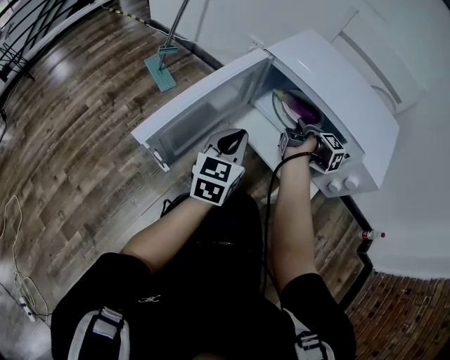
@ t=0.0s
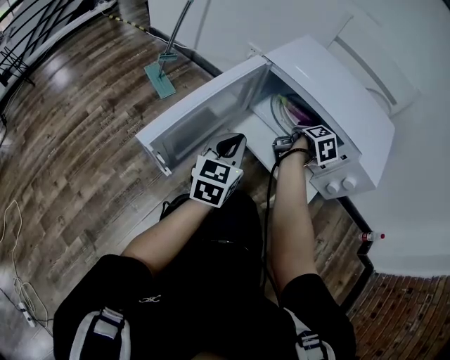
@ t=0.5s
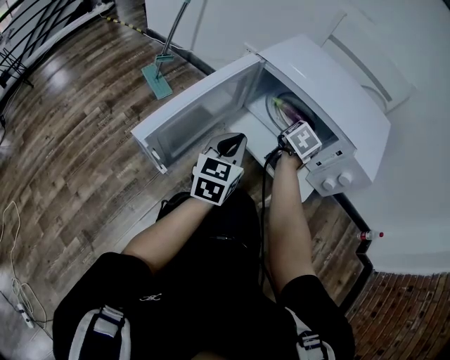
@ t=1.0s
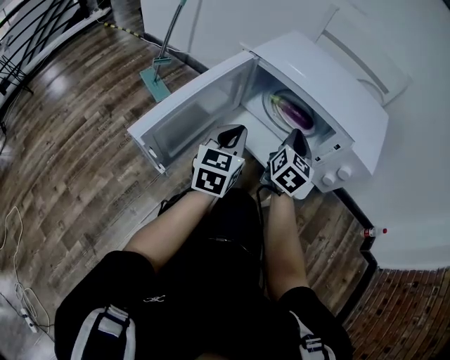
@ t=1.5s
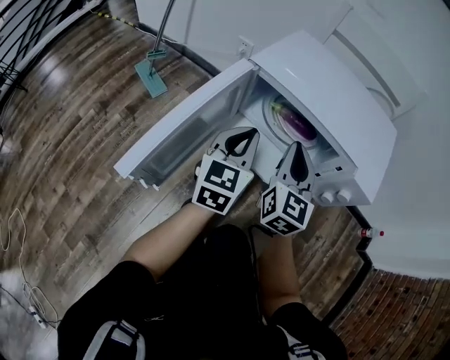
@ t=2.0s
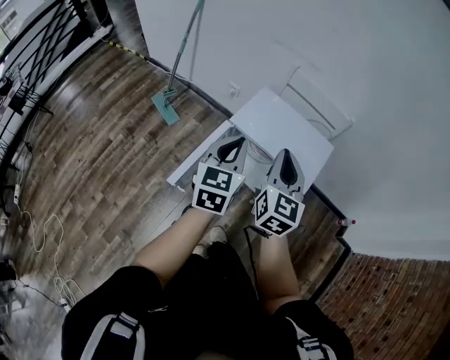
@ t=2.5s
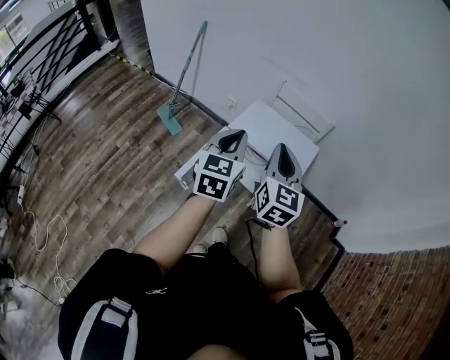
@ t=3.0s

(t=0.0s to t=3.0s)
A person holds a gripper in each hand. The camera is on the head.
t=1.5s - t=3.0s: The left gripper moves upward, some 50 cm.

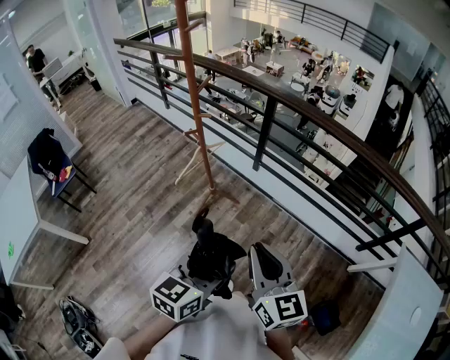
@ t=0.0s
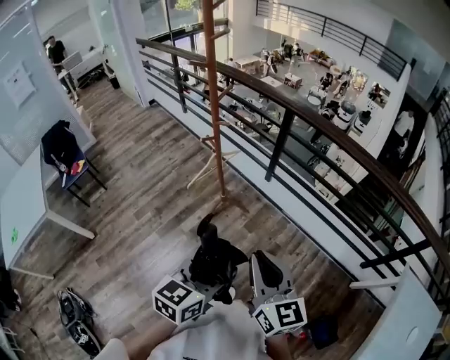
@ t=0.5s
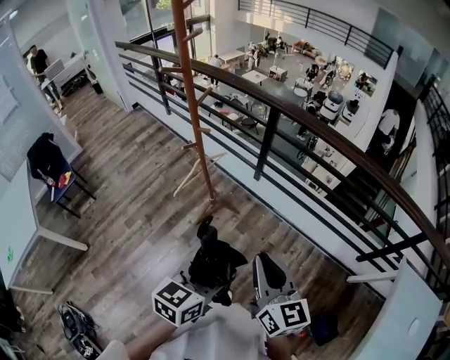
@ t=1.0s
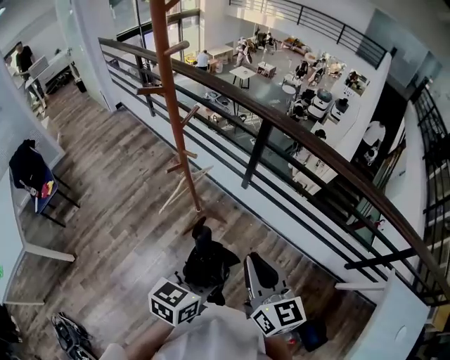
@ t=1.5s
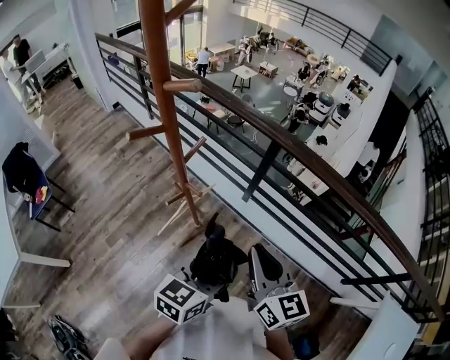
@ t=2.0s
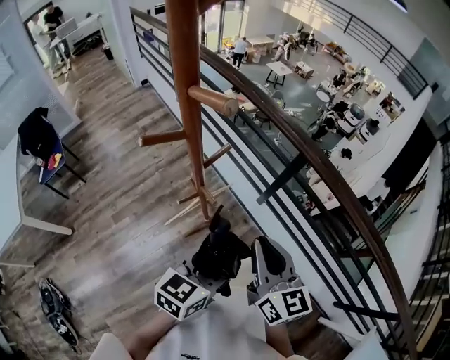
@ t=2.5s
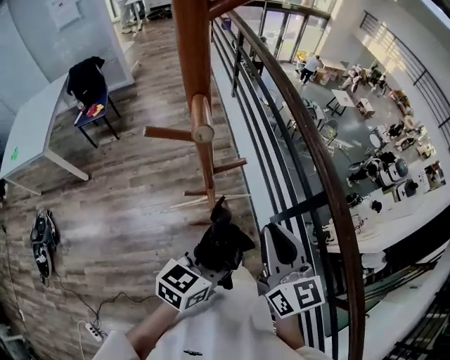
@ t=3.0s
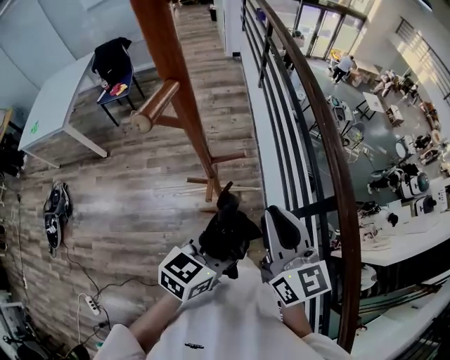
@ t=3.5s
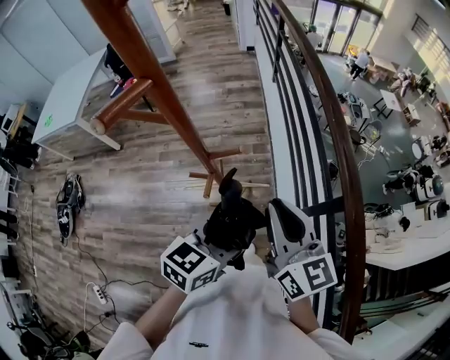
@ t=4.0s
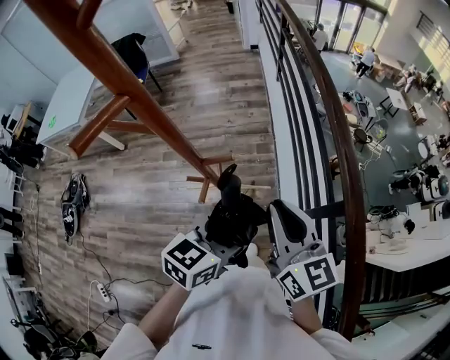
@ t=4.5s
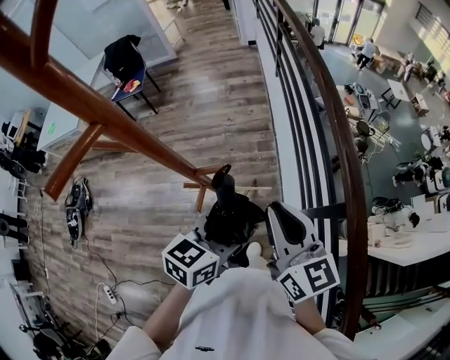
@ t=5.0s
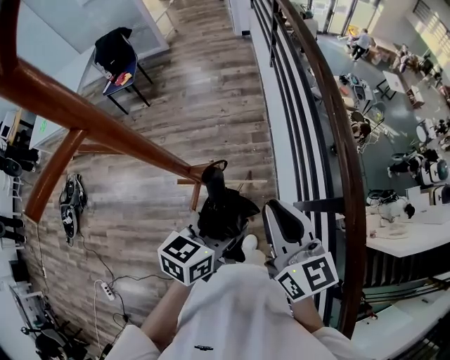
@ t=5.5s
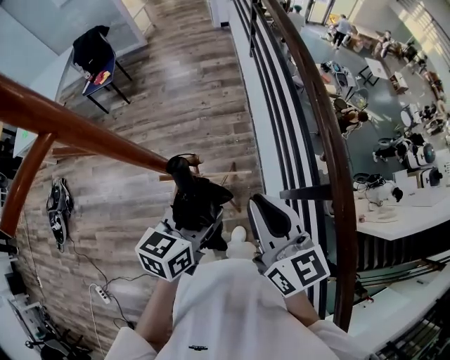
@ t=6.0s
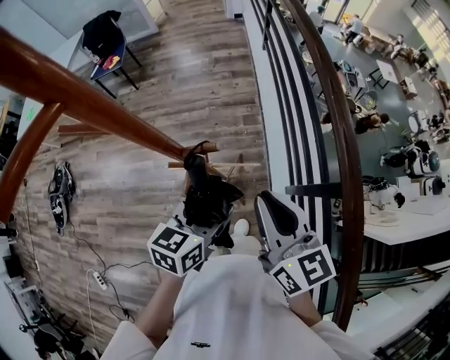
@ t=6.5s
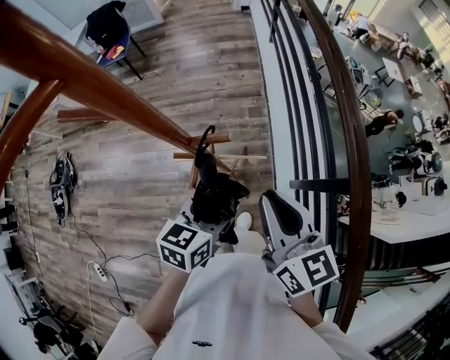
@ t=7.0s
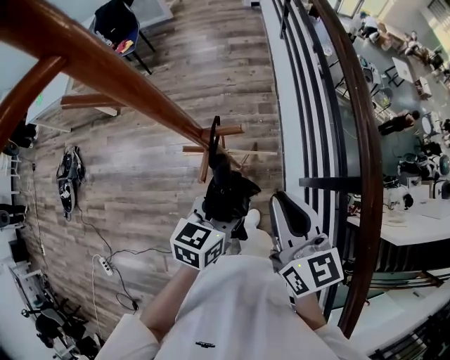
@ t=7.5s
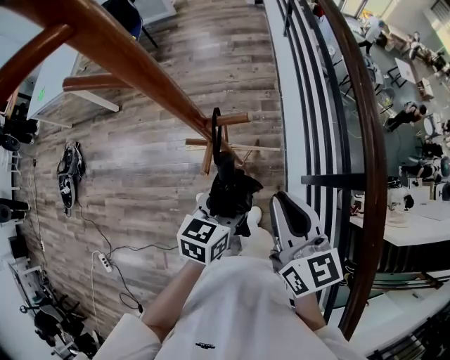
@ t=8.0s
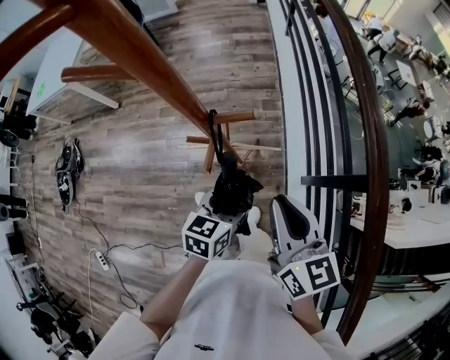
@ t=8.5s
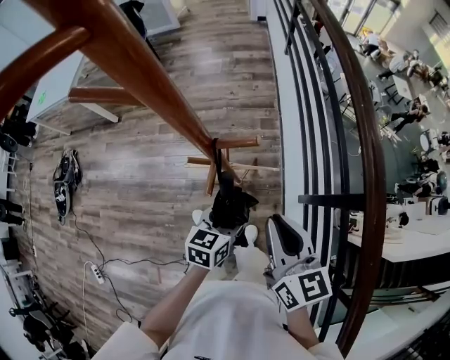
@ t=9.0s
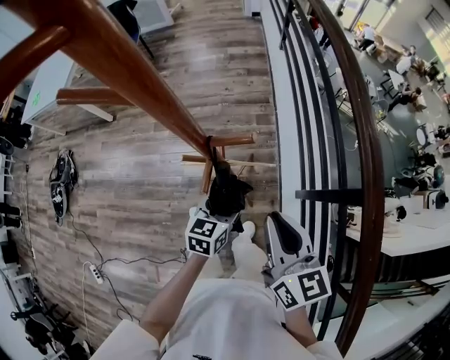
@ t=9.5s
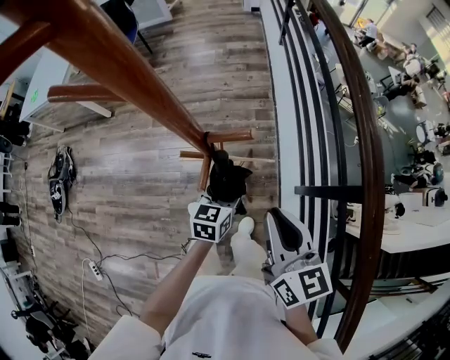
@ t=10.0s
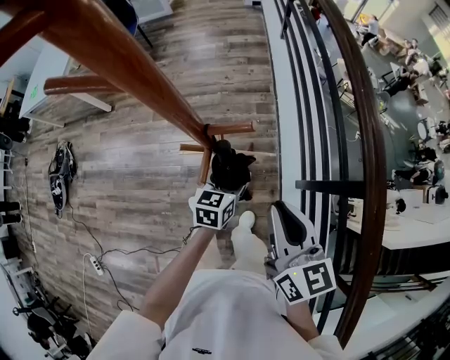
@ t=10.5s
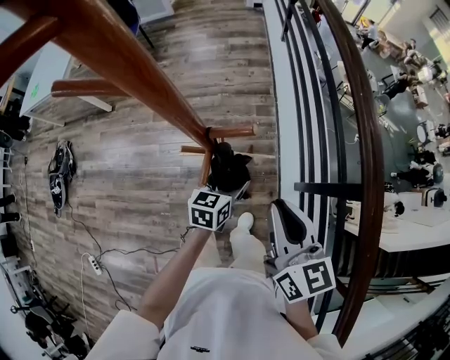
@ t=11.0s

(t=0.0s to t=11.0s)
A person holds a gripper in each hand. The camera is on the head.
t=0.0s - t=2.0s: Both grippers travel together forward, roughly 35 cm.
t=2.0s - t=3.5s: The right gripper changes place by some 25 cm, and changes its angle by approximately 50 degrees; the left gripper shifts by about 20 cm, and changes its angle by about 40 degrees.
t=3.5s - t=5.5s: Both grippers move forward, about 10 cm.
t=5.5s - t=7.5s: The two grippers go approximately 5 cm downward.
t=7.5s - t=9.0s: The right gripper shifts by some 5 cm. Meanwhile the left gripper shifts some 10 cm downward.
t=9.0s - t=11.0s: The left gripper travels forward by about 5 cm.

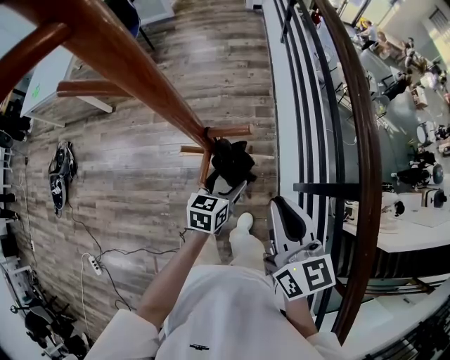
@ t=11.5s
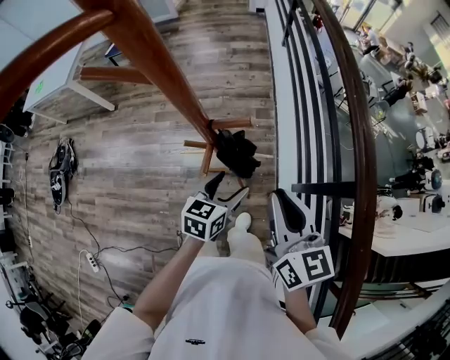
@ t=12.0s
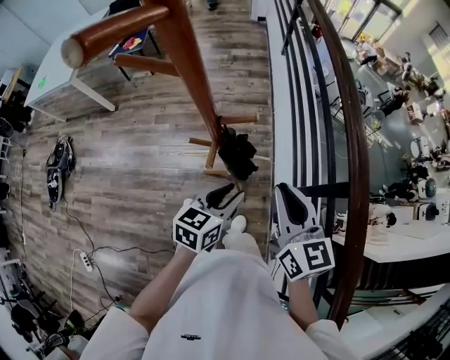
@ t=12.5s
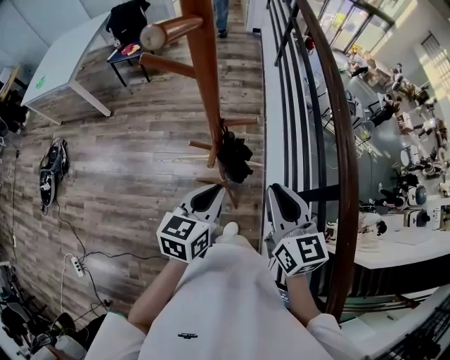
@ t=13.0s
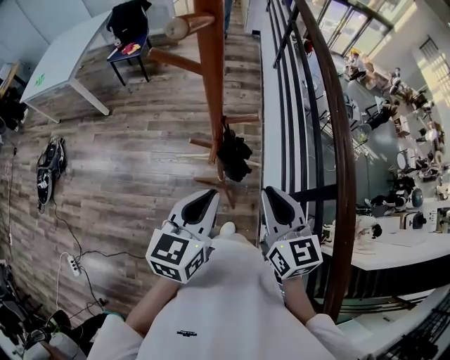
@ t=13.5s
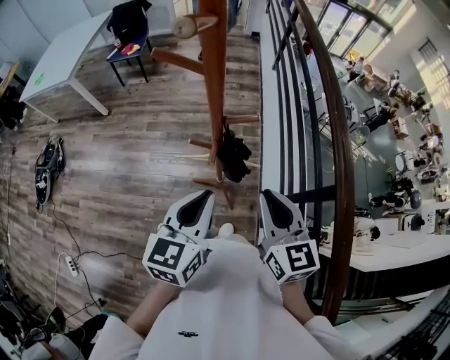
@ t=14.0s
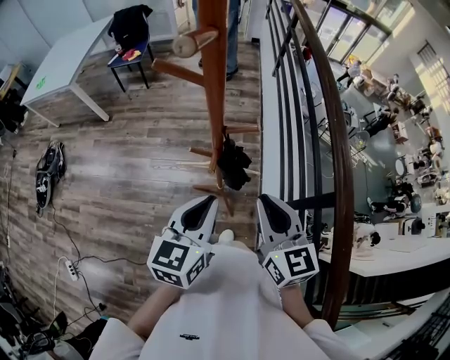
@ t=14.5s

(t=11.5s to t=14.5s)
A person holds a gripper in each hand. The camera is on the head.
t=11.5s - t=13.0s: The left gripper travels upward and backward by some 20 cm, and closes.
t=13.0s - t=14.5s: The left gripper travels upward by some 5 cm.

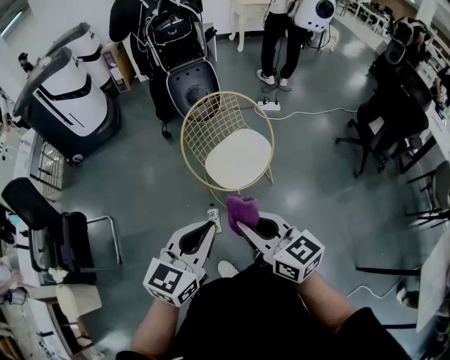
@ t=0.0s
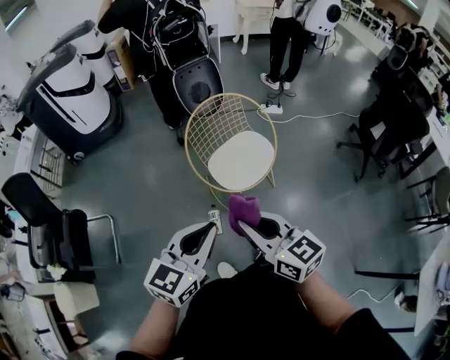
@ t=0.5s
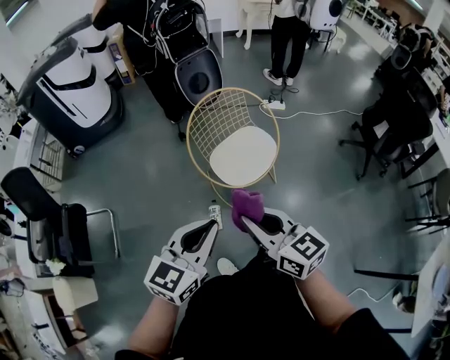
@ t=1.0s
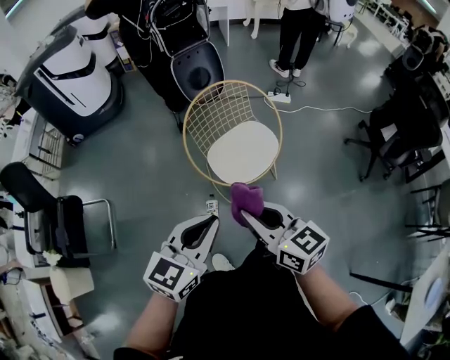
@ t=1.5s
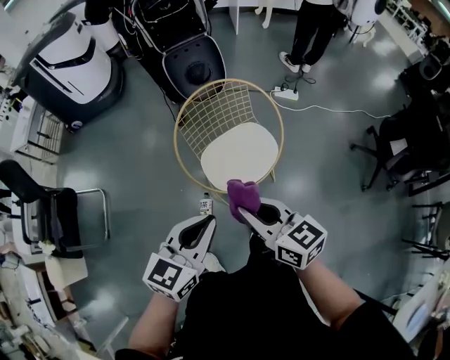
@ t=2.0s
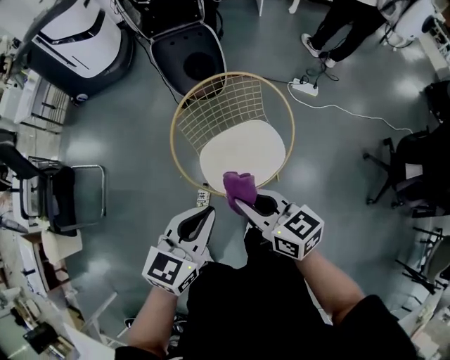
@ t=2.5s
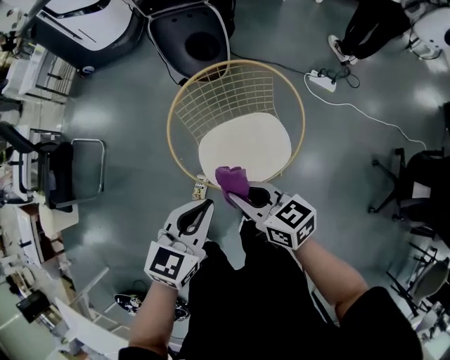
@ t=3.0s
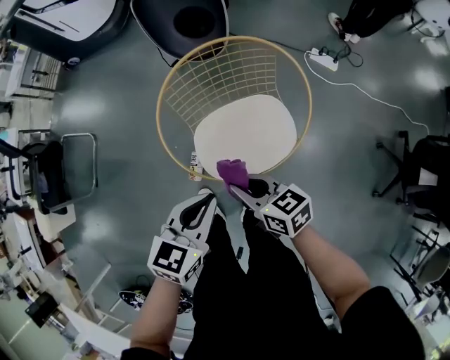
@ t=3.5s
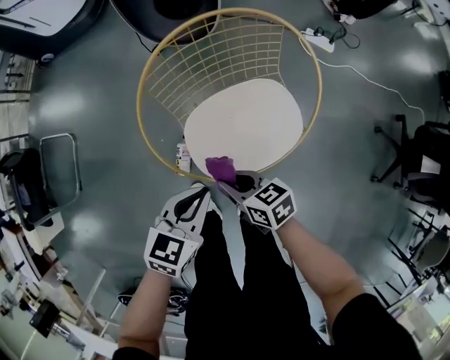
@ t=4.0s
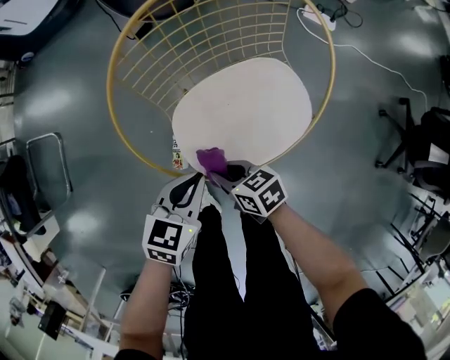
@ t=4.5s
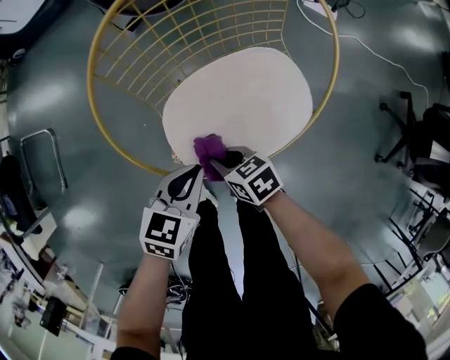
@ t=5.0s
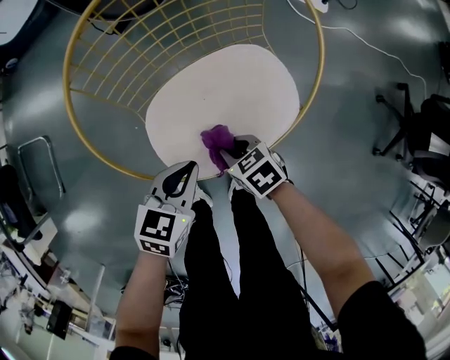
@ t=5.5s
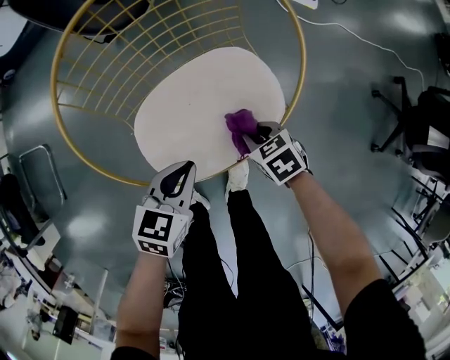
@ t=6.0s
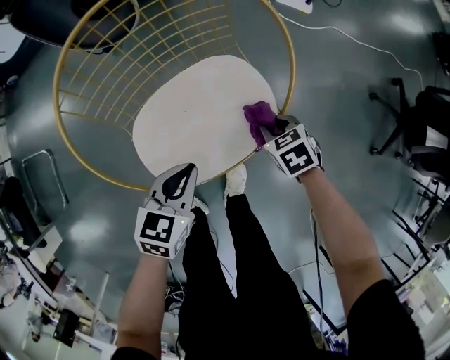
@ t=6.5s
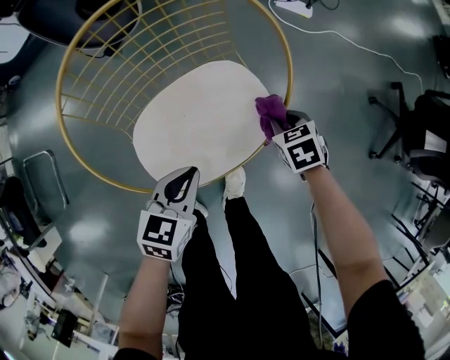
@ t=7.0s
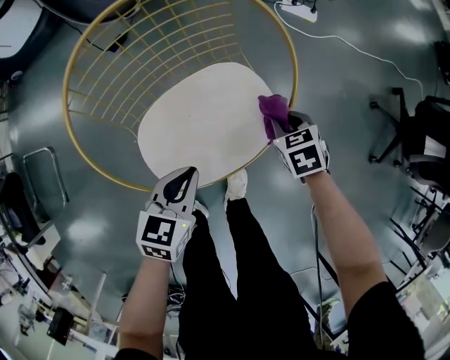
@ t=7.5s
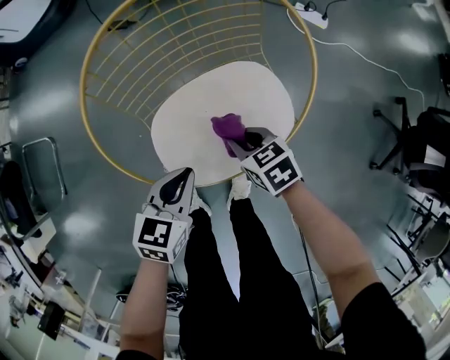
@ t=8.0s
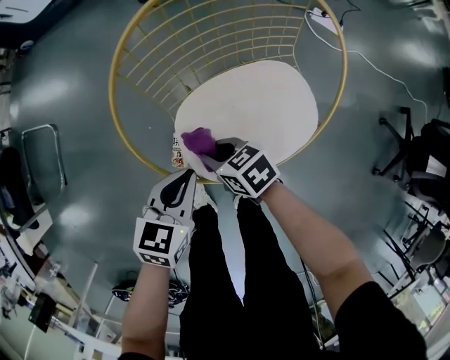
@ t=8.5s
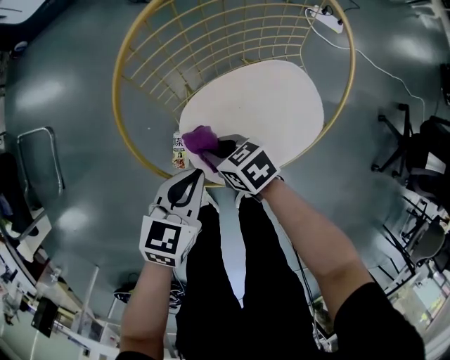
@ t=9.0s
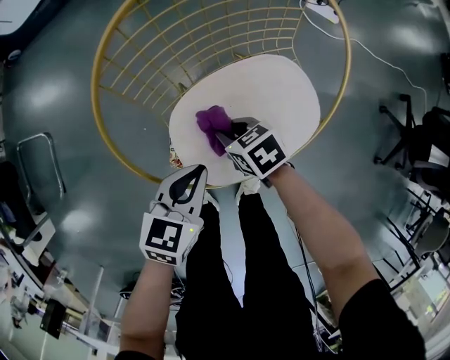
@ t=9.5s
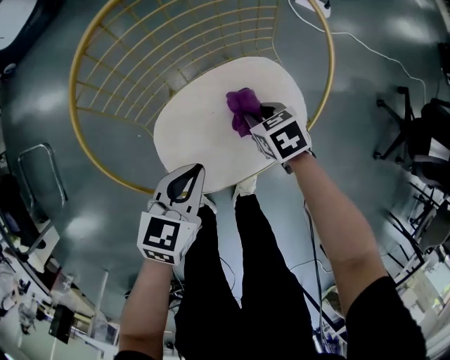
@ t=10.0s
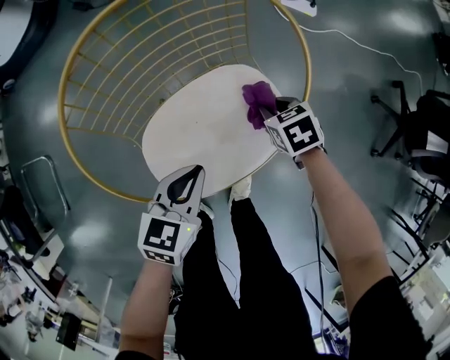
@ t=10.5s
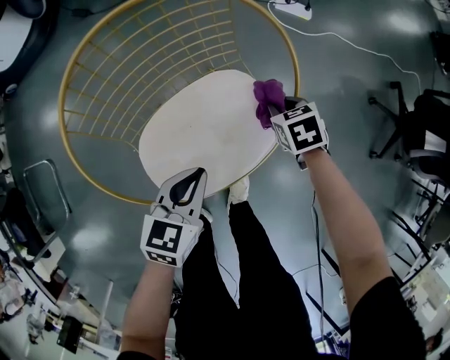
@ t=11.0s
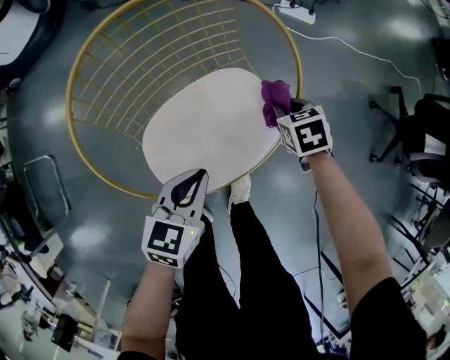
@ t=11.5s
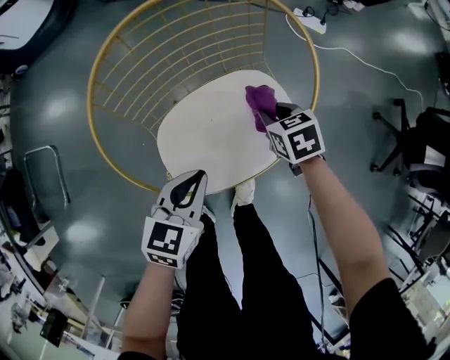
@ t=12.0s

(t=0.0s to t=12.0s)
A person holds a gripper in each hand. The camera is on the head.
t=0.0s - t=2.0s: Both grippers travel together forward, to the right and downward, some 15 cm.
t=2.0s - t=4.0s: The right gripper heads downward, covering some 35 cm, and turns by approximately 30 degrees, while the left gripper travels downward and forward by approximately 30 cm, and turns by about 20 degrees.
t=4.0s - t=6.0s: The right gripper shifts about 25 cm to the right and downward, and changes its angle by roughly 30 degrees, while the left gripper moves downward and to the right, roughly 15 cm.
t=6.0s - t=8.0s: The right gripper is displaced to the left and upward by about 10 cm.
t=8.0s - t=10.0s: The right gripper goes about 10 cm downward and forward, and reaches about 15 cm to the left, then returns.
t=10.0s - t=12.0s: The right gripper moves upward, some 5 cm, and travels to the right and back again, roughly 15 cm each way.
